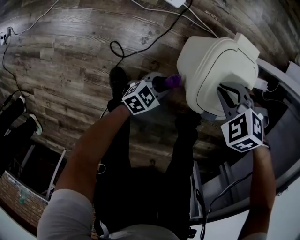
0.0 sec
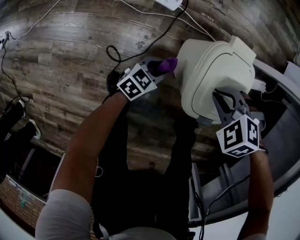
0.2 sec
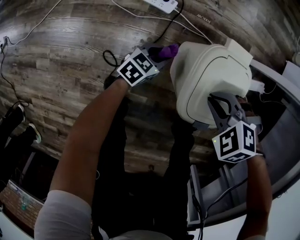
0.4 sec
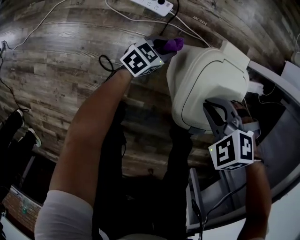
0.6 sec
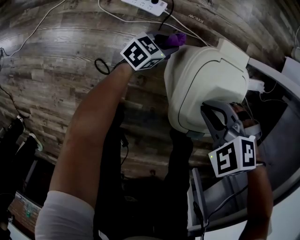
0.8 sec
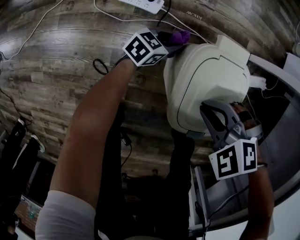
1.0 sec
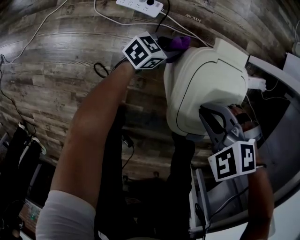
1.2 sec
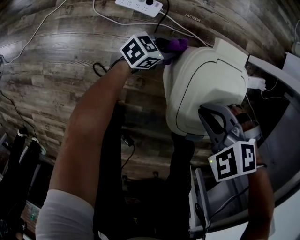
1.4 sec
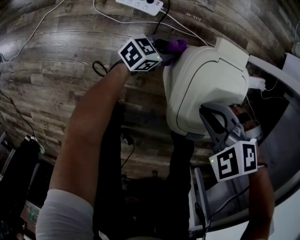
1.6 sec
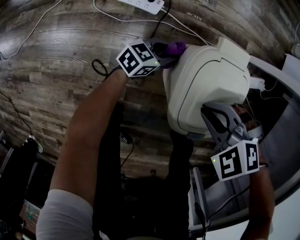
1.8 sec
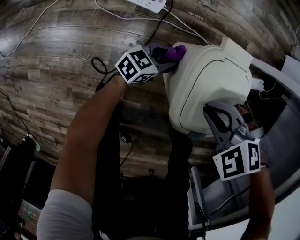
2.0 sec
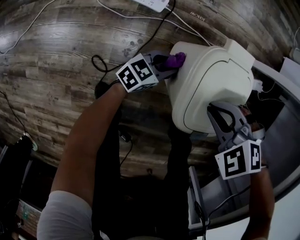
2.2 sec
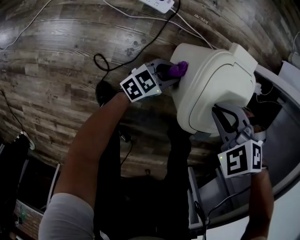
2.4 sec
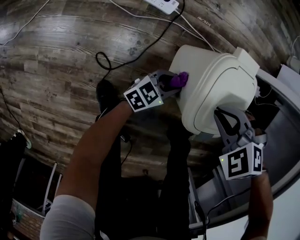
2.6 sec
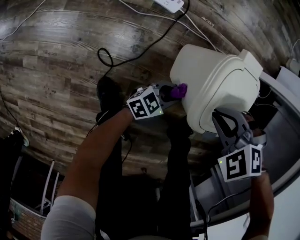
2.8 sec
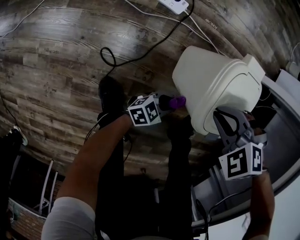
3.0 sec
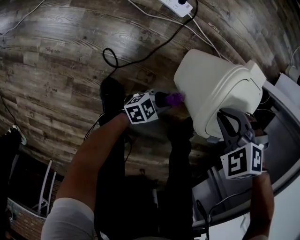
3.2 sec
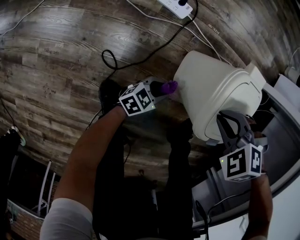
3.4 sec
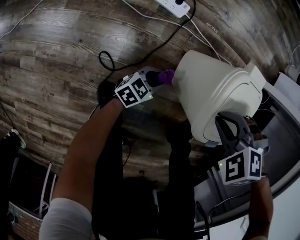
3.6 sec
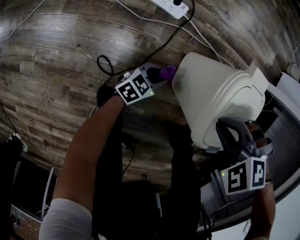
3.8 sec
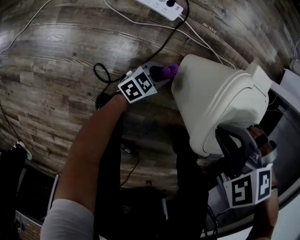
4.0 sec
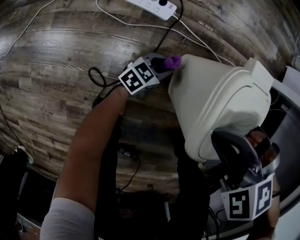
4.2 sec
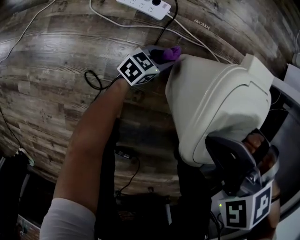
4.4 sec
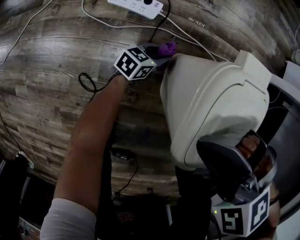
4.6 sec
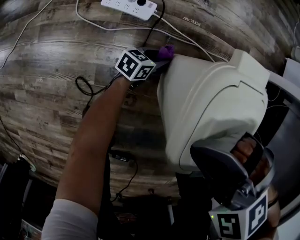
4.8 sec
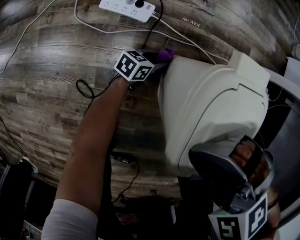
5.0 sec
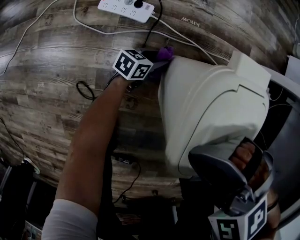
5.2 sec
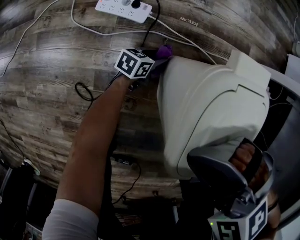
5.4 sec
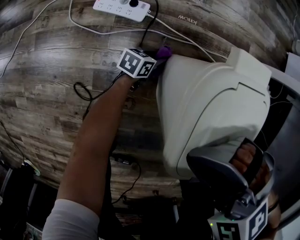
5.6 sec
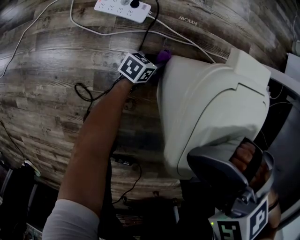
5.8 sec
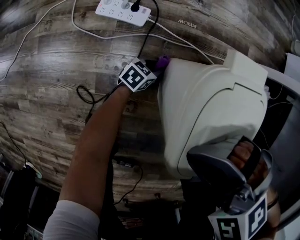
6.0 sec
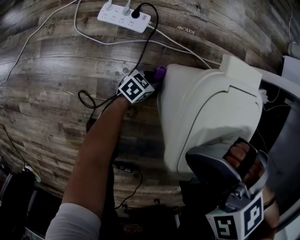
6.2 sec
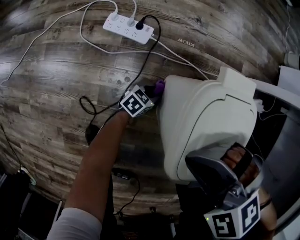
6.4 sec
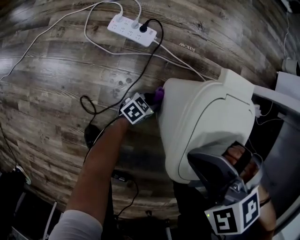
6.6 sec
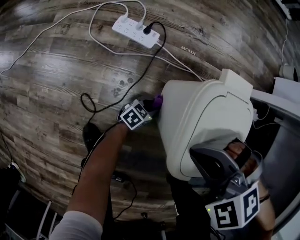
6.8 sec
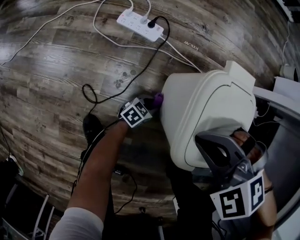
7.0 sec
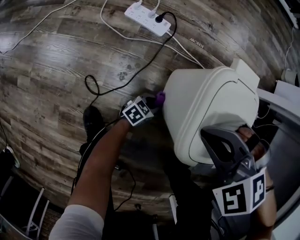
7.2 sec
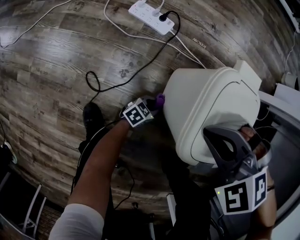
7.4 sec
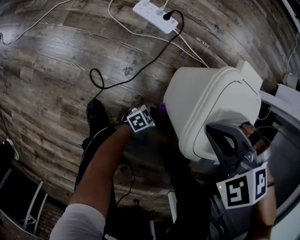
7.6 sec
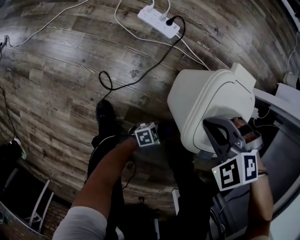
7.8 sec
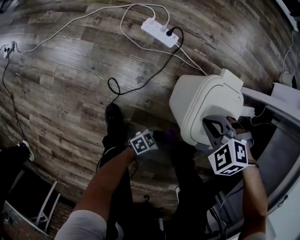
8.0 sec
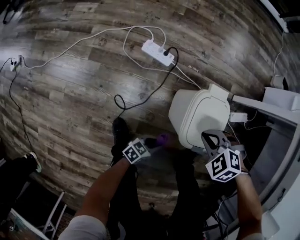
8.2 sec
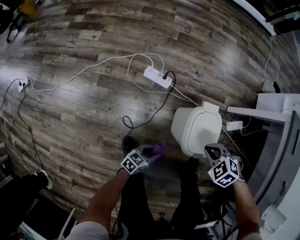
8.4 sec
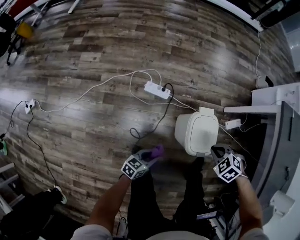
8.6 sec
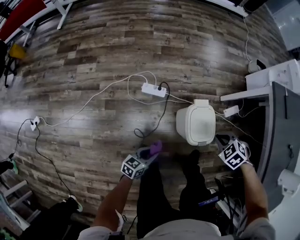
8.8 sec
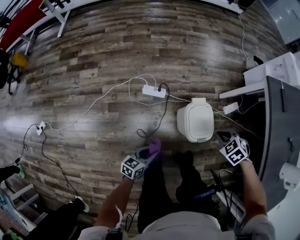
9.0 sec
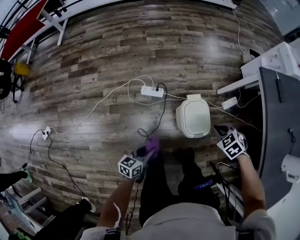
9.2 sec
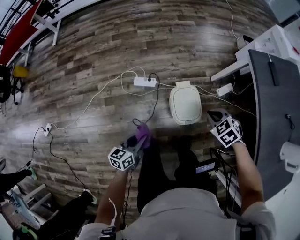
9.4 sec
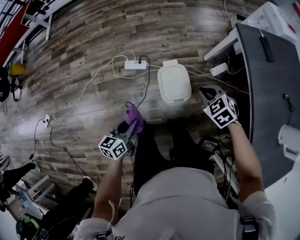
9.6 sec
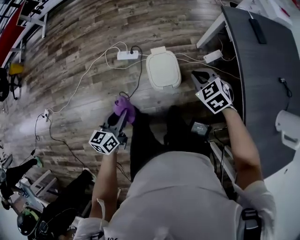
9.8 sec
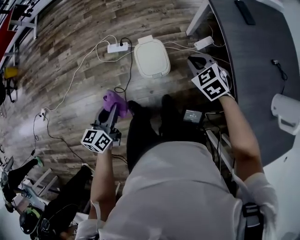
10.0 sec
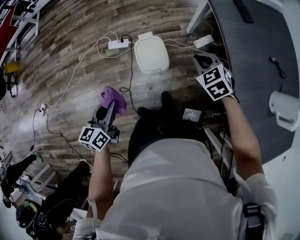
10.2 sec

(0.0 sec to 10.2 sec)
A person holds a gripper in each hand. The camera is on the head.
0.0 sec - 1.4 sec: The left gripper moves about 25 cm.
1.4 sec - 3.0 sec: The left gripper shifts by some 25 cm.
3.0 sec - 4.4 sec: The left gripper ends up roughly 25 cm from where it was.
4.4 sec - 5.8 sec: The left gripper is displaced downward by roughly 10 cm.
5.8 sec - 7.2 sec: The left gripper ends up approximately 15 cm from where it was.
7.2 sec - 8.8 sec: The right gripper heads upward, covering roughly 25 cm, and rolls clockwise, seen from behind, by approximately 40 degrees. Meanwhile the left gripper heads upward, covering some 50 cm.
8.8 sec - 10.2 sec: The right gripper changes place by approximately 30 cm, and changes its angle by approximately 30 degrees. Meanwhile the left gripper is displaced upward by approximately 30 cm, and rotates some 20 degrees.

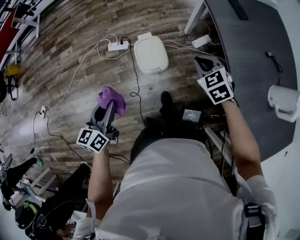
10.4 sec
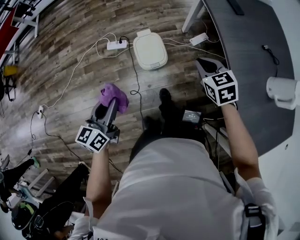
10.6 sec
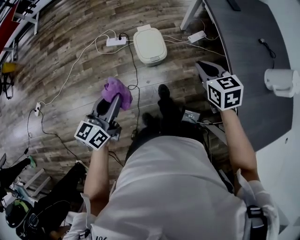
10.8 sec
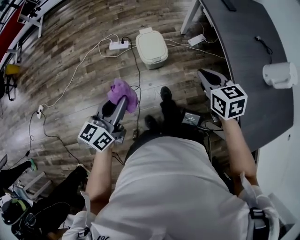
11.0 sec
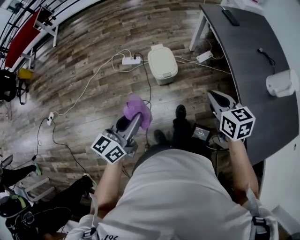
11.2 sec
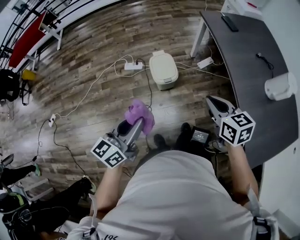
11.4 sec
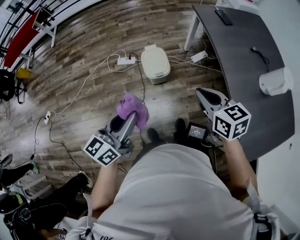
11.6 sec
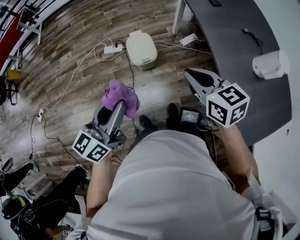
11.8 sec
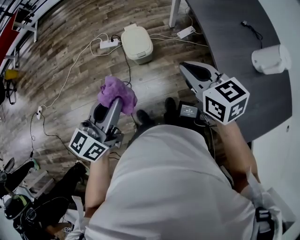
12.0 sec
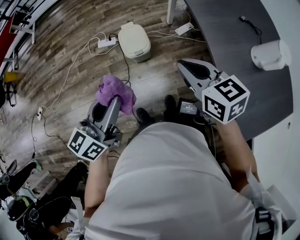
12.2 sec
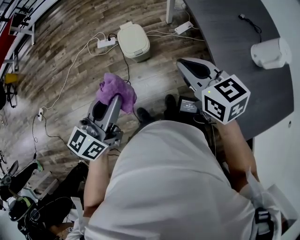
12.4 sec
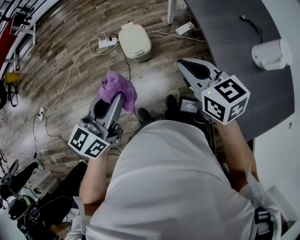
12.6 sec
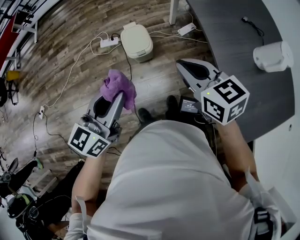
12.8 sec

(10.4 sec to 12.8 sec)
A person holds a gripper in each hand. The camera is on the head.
10.4 sec - 11.6 sec: The left gripper goes about 25 cm backward, upward and to the right, and changes its angle by roughly 20 degrees. Meanwhile the right gripper travels backward and upward by some 30 cm, and rotates some 30 degrees.
11.6 sec - 12.8 sec: The left gripper moves to the right, roughly 10 cm.

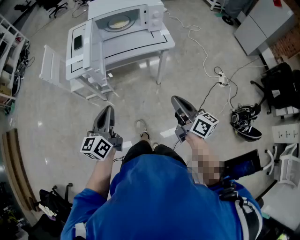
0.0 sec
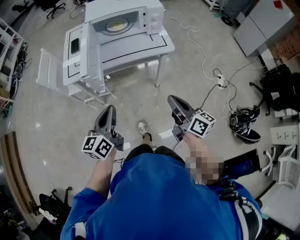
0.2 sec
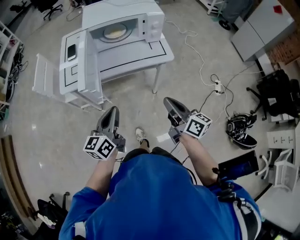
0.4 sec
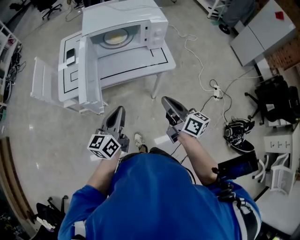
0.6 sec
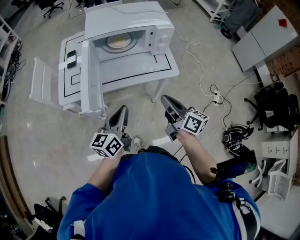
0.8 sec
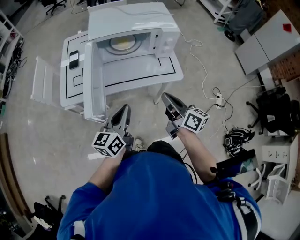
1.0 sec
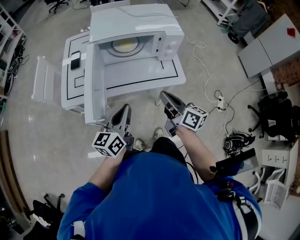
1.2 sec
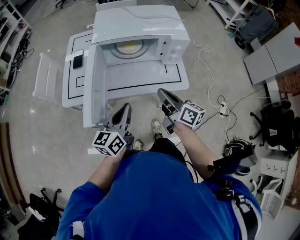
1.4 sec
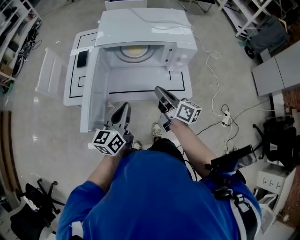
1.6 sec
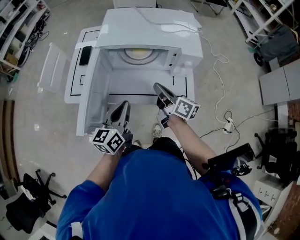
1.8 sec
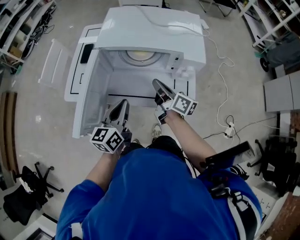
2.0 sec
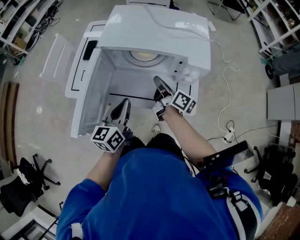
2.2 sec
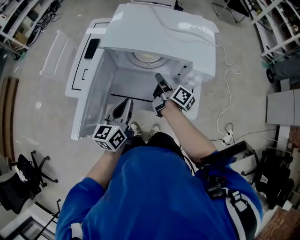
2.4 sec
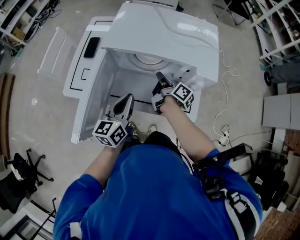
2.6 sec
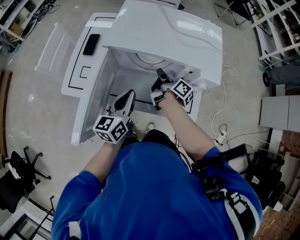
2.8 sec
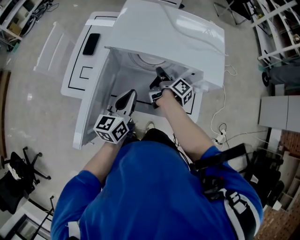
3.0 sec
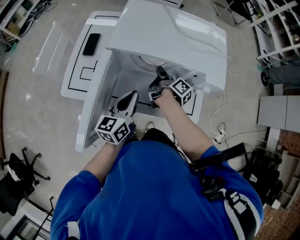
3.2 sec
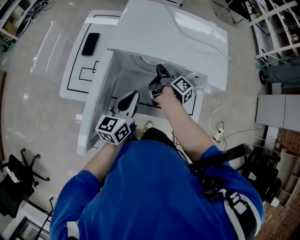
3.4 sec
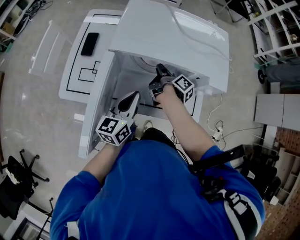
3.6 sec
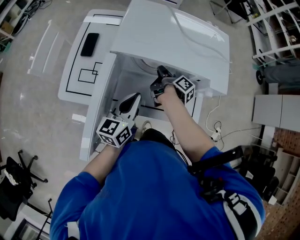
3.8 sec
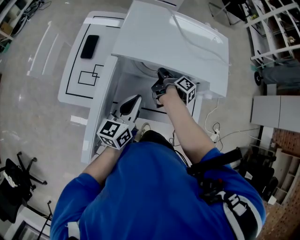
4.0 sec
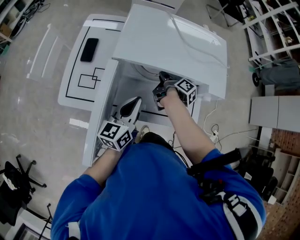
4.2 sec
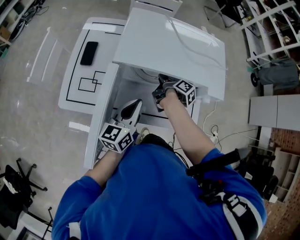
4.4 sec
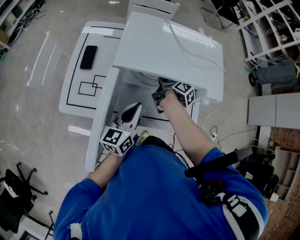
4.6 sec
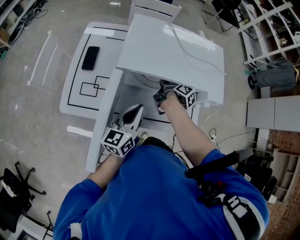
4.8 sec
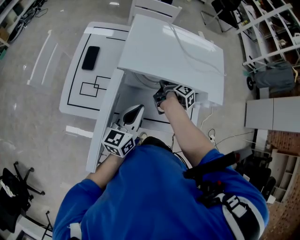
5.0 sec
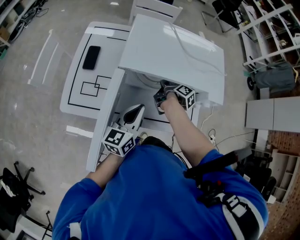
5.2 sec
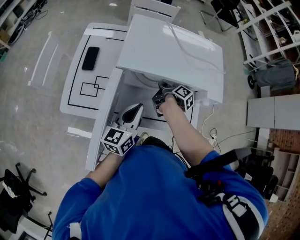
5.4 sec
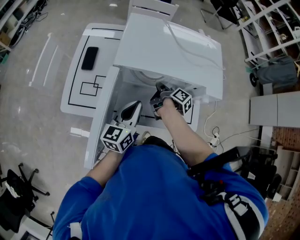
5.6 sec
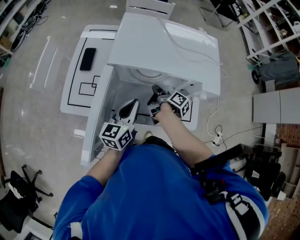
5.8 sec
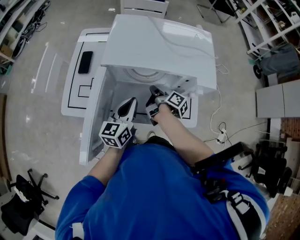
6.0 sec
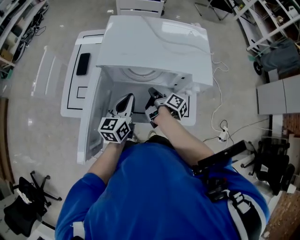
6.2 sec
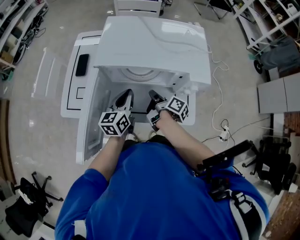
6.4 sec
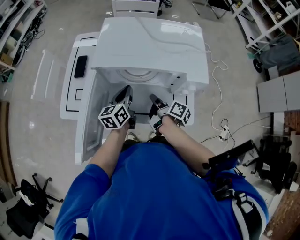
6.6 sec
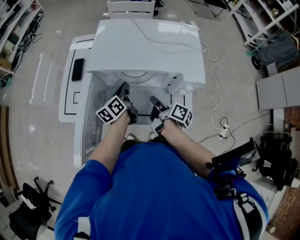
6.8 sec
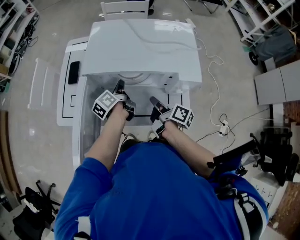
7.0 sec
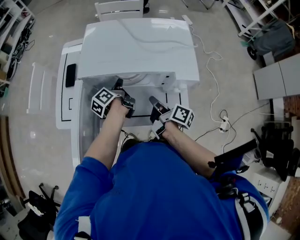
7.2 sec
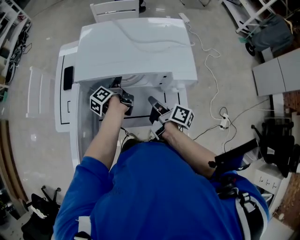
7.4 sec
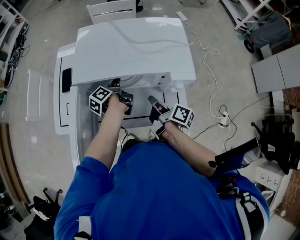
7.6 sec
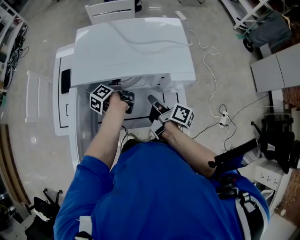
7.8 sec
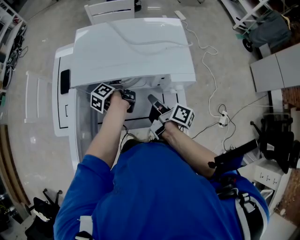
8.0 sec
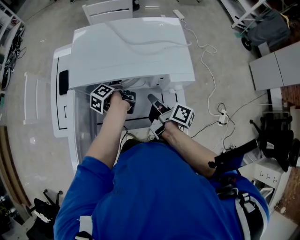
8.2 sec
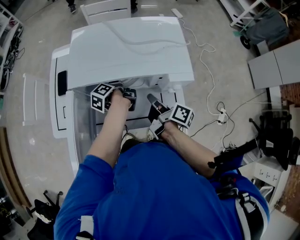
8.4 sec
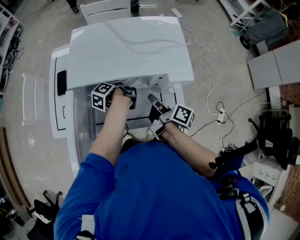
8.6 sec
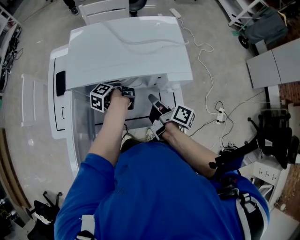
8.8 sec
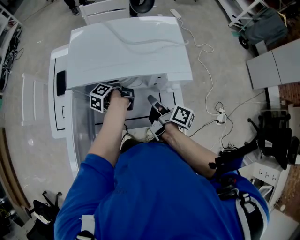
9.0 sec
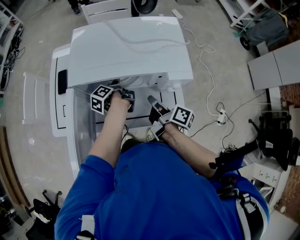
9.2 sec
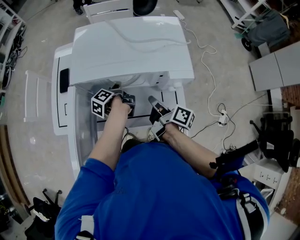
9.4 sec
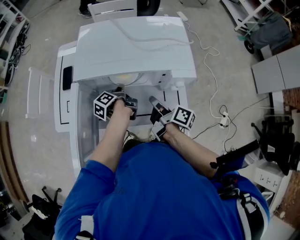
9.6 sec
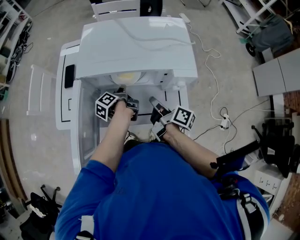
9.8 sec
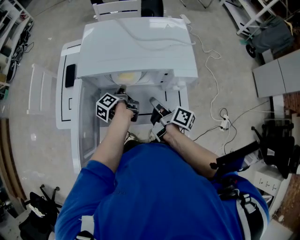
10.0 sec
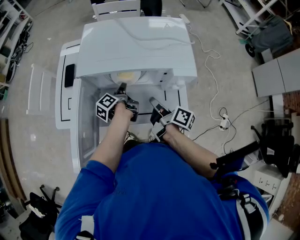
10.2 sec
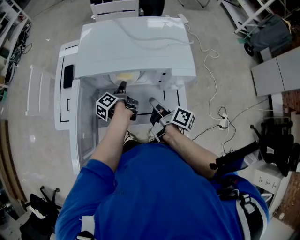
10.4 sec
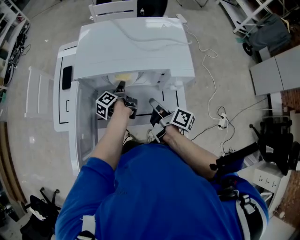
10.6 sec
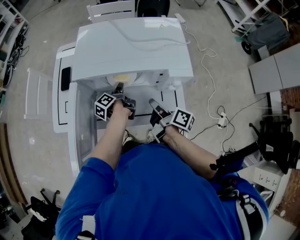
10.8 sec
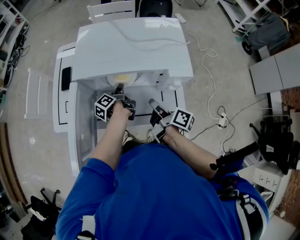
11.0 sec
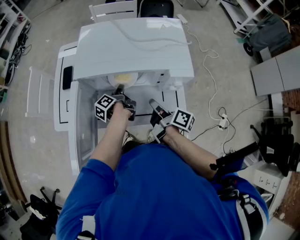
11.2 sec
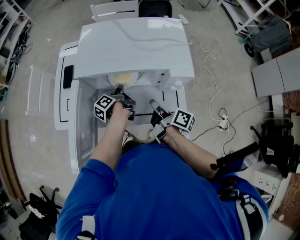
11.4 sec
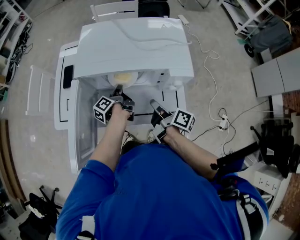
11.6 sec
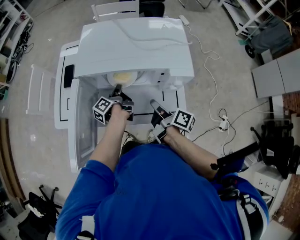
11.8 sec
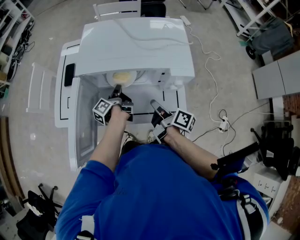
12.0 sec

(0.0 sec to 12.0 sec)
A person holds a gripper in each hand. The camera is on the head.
0.0 sec - 1.6 sec: The left gripper shifts by some 30 cm.
1.6 sec - 3.0 sec: The left gripper shifts by about 15 cm.
6.0 sec - 7.6 sec: The left gripper changes place by approximately 15 cm, twists approximately 60 degrees counterclockwise, seen from behind, and opens.
7.6 sec - 9.0 sec: The left gripper closes up.
9.0 sec - 10.4 sec: The left gripper ends up some 5 cm from where it was, and opens.
10.4 sec - 12.0 sec: The left gripper closes its fingers.
